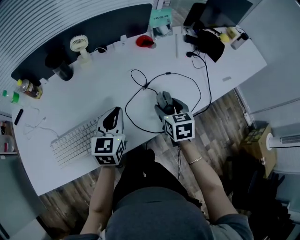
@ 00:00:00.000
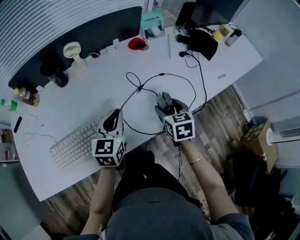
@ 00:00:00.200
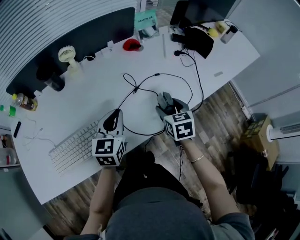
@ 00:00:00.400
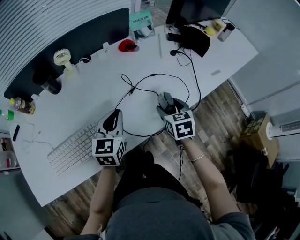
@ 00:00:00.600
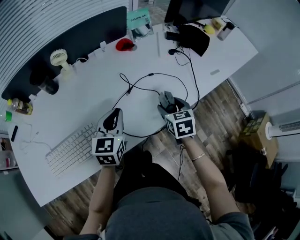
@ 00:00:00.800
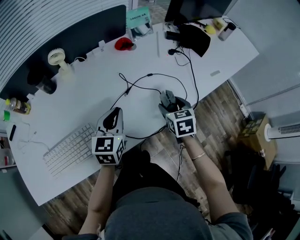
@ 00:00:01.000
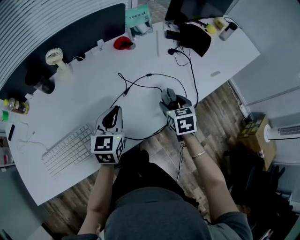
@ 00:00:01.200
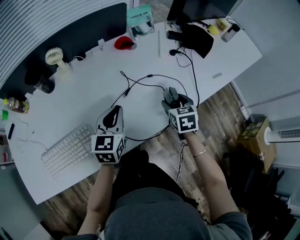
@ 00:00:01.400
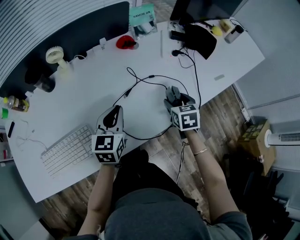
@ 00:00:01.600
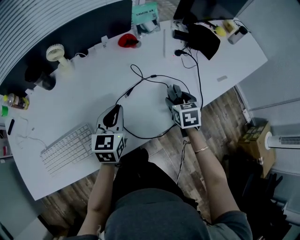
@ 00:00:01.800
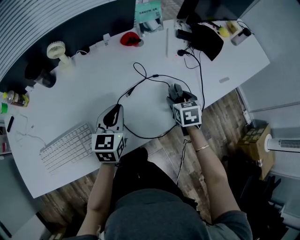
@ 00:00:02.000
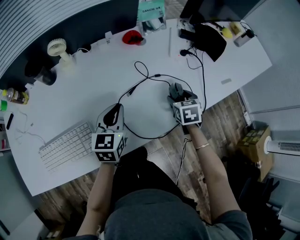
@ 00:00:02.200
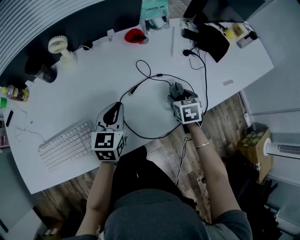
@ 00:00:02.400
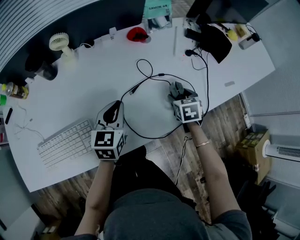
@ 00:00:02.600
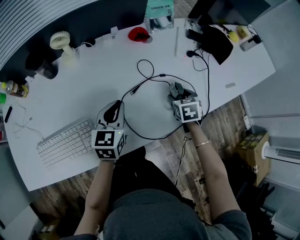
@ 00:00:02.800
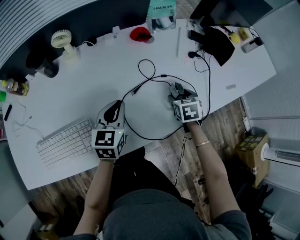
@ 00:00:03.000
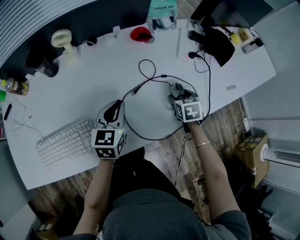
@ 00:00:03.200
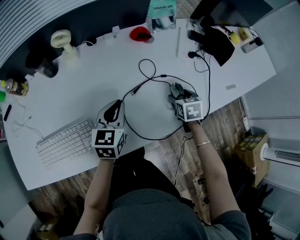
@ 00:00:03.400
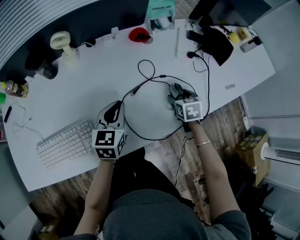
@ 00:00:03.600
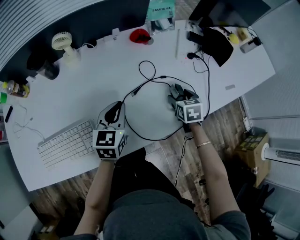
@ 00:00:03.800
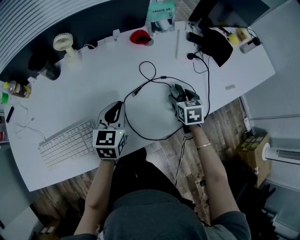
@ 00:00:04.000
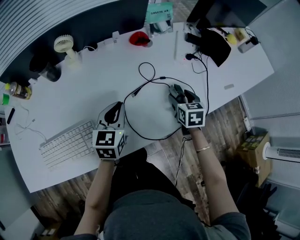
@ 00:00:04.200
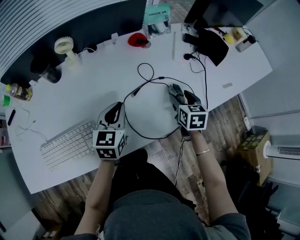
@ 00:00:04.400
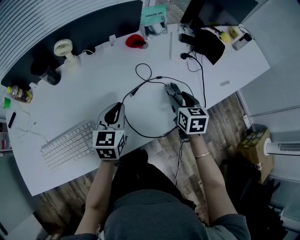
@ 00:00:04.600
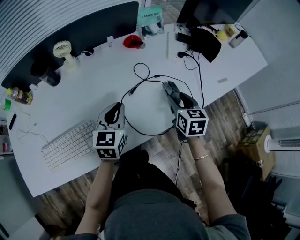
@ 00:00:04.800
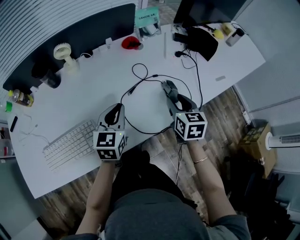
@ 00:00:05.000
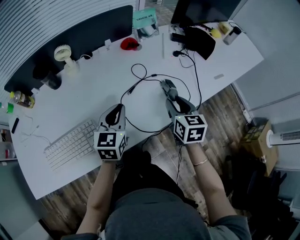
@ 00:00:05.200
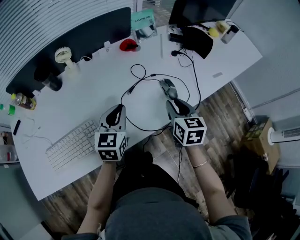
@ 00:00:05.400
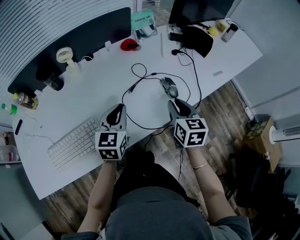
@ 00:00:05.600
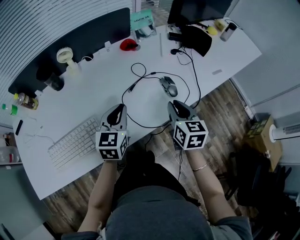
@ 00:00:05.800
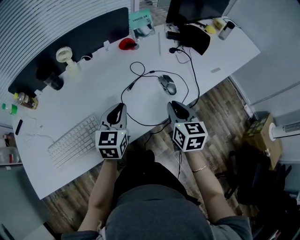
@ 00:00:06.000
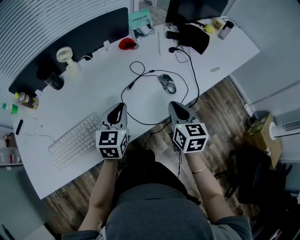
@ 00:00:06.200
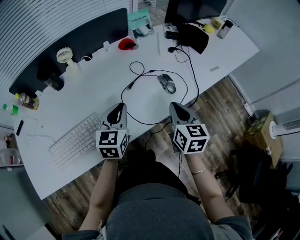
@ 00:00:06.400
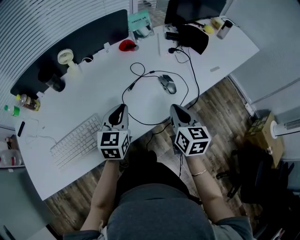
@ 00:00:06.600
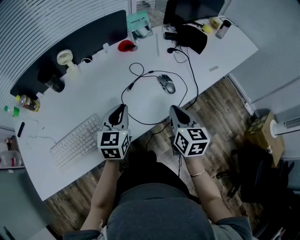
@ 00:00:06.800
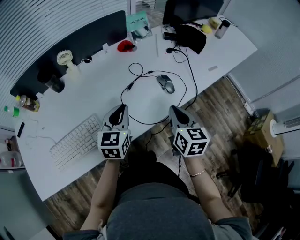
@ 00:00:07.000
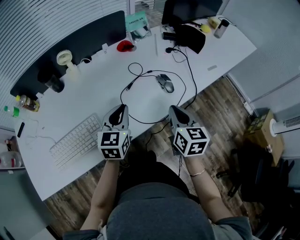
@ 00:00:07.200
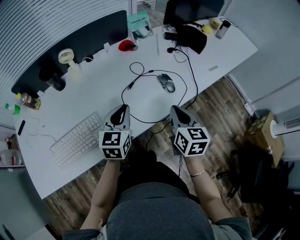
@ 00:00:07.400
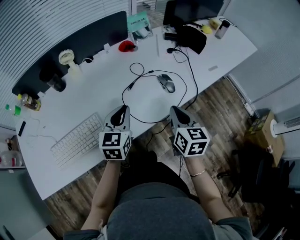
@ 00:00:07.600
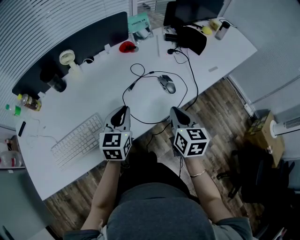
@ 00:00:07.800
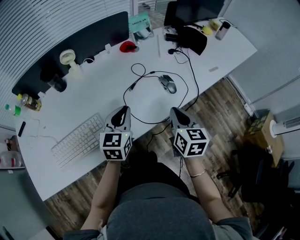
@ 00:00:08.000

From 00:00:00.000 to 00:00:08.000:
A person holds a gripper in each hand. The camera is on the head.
From 00:00:00.000 to 00:00:01.600: Both grippers travel together to the right and forward, about 15 cm.
From 00:00:01.600 to 00:00:03.200: The right gripper is displaced downward and forward by approximately 5 cm.
From 00:00:03.200 to 00:00:04.800: The right gripper moves upward and backward, roughly 10 cm, and turns by some 20 degrees.
From 00:00:04.800 to 00:00:06.400: The right gripper is displaced backward and upward by about 15 cm, and closes. Meanwhile the left gripper moves backward, some 5 cm.
From 00:00:06.400 to 00:00:08.000: The grippers move only a little.

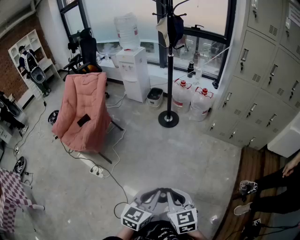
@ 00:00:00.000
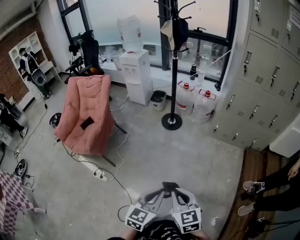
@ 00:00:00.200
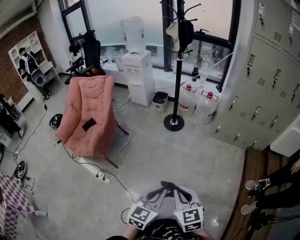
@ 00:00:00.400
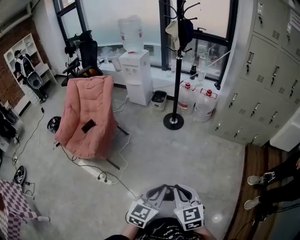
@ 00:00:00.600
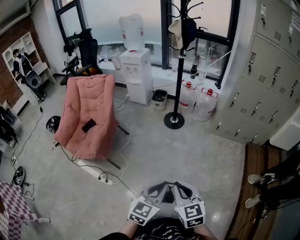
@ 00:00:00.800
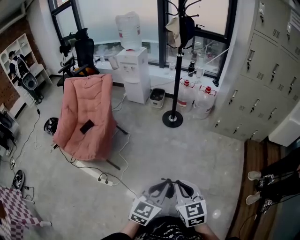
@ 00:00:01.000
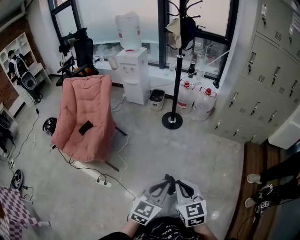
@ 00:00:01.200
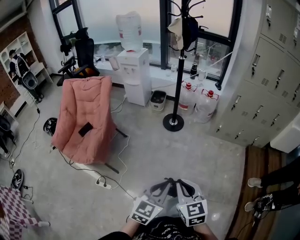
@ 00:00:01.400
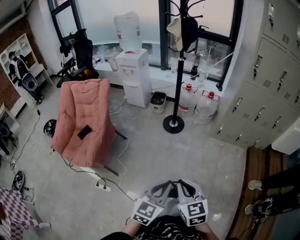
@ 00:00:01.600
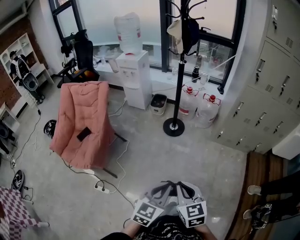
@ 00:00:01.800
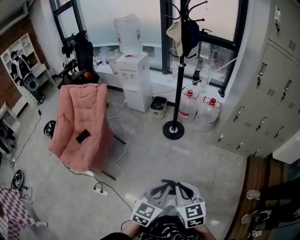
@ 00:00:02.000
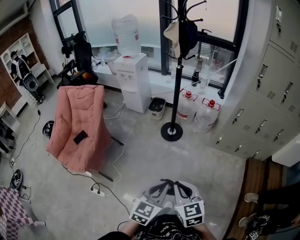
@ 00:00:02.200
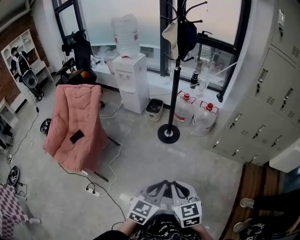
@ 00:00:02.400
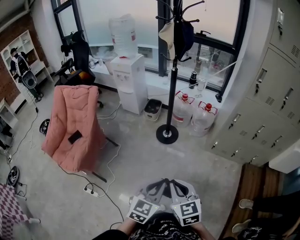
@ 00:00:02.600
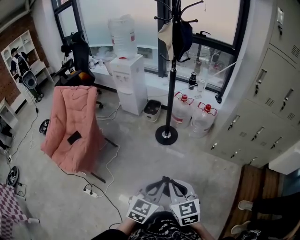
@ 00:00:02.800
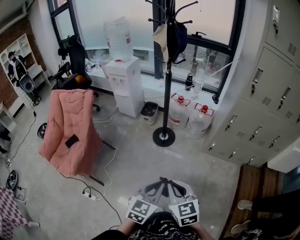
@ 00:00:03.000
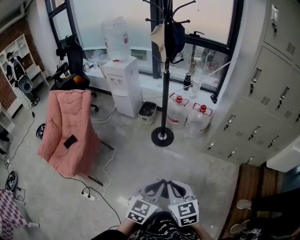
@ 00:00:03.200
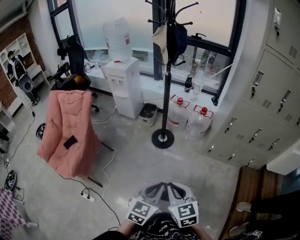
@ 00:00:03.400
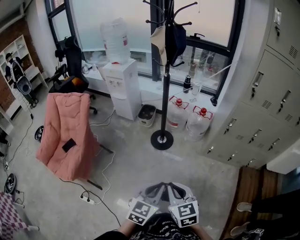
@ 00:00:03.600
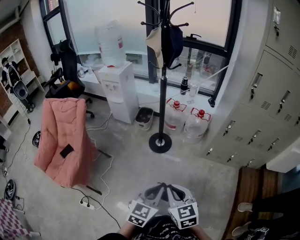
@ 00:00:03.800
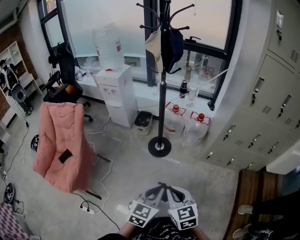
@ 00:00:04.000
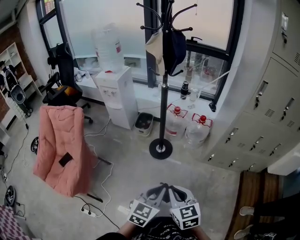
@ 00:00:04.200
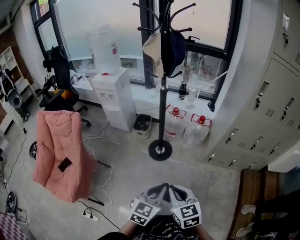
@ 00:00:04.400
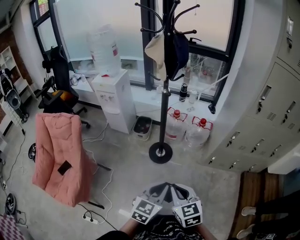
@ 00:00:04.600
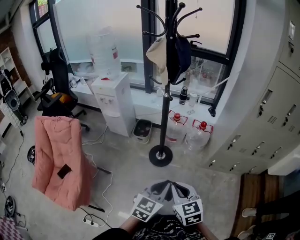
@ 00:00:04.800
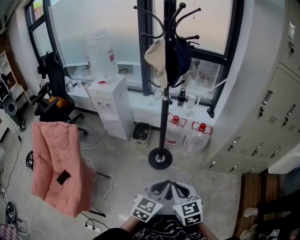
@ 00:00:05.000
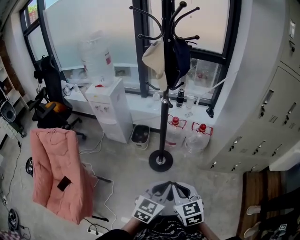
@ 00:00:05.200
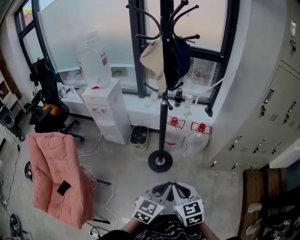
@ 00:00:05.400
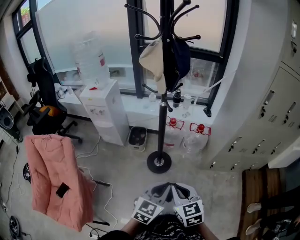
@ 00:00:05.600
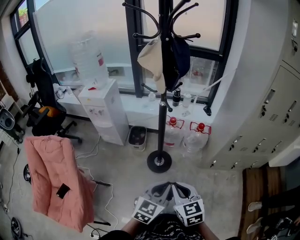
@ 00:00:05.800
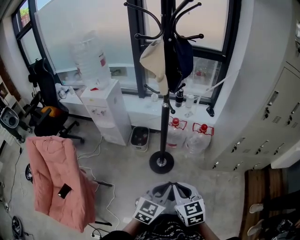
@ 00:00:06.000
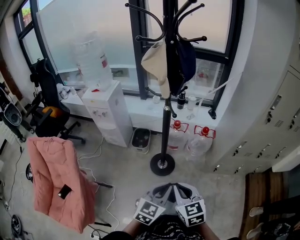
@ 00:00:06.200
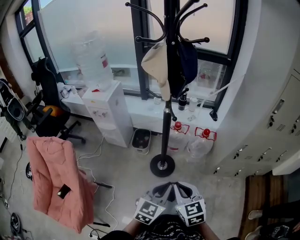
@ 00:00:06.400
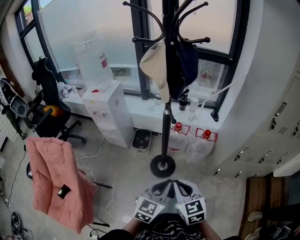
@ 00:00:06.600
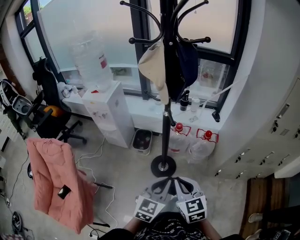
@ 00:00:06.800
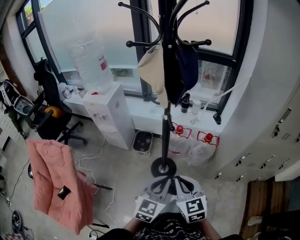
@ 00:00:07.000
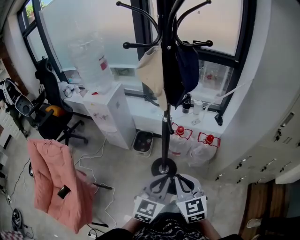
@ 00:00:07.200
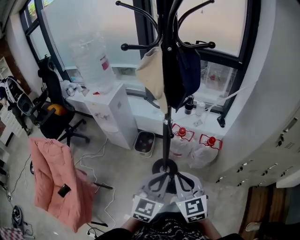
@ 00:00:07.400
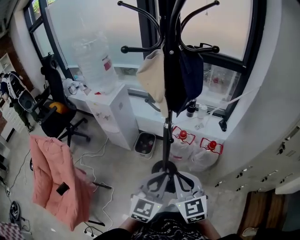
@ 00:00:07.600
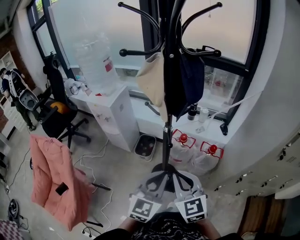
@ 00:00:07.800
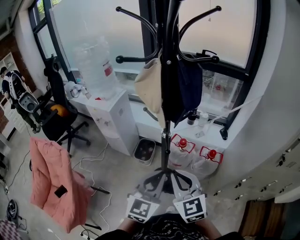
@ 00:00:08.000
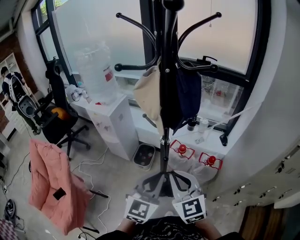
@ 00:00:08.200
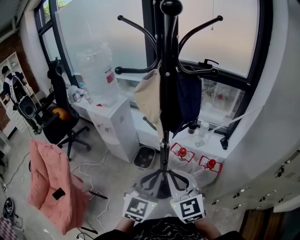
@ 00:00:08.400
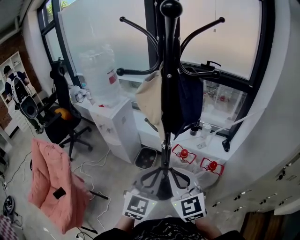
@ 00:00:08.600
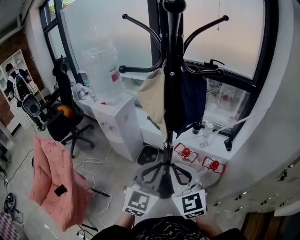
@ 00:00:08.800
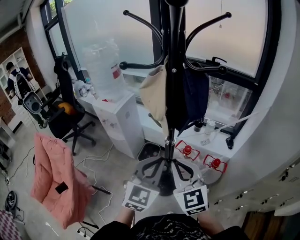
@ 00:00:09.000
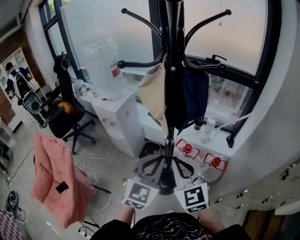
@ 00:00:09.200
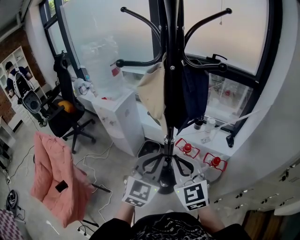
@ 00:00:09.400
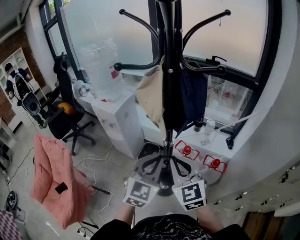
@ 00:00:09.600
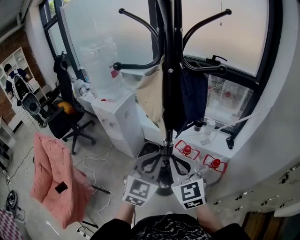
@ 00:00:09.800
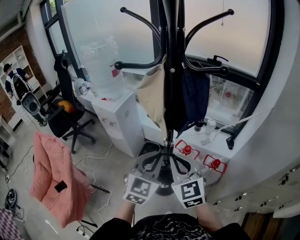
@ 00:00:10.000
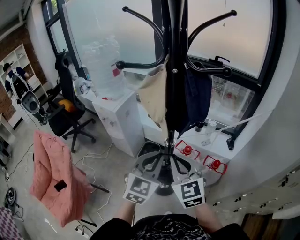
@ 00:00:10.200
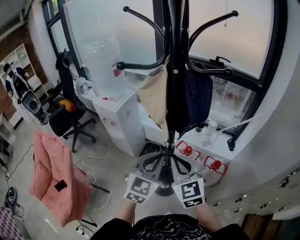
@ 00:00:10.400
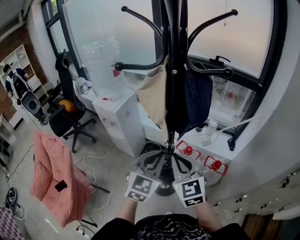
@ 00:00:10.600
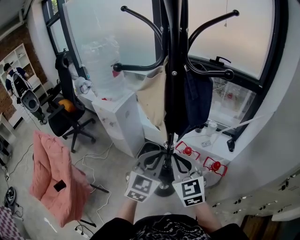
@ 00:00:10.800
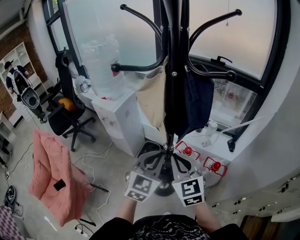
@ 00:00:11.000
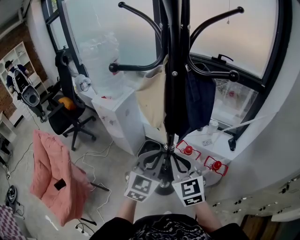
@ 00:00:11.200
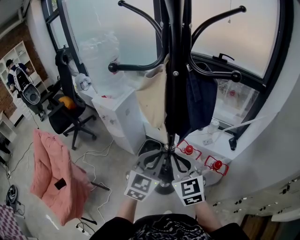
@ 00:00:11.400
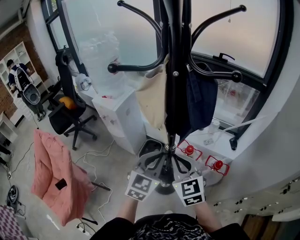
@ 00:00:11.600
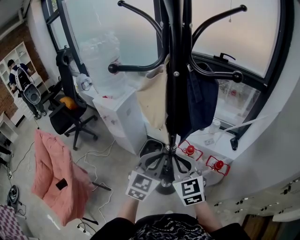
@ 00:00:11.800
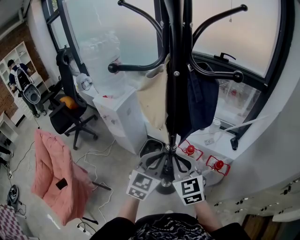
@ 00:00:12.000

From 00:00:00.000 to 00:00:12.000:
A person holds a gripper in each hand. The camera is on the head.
From 00:00:00.000 to 00:00:01.600: The grippers both shift forward and to the left by some 15 cm.
From 00:00:01.600 to 00:00:03.000: Both grippers travel together forward and to the right, about 20 cm.
From 00:00:03.000 to 00:00:04.400: Both grippers travel together forward, about 15 cm.
From 00:00:04.400 to 00:00:06.000: The grippers both shift forward and to the left by about 15 cm.
From 00:00:06.000 to 00:00:07.600: The two grippers go some 20 cm forward and upward.
From 00:00:07.600 to 00:00:09.000: The two grippers go about 10 cm forward and upward.
From 00:00:09.000 to 00:00:10.400: The left gripper changes place by about 5 cm.
From 00:00:10.400 to 00:00:12.000: The right gripper shifts by some 5 cm. Meanwhile the left gripper ends up about 5 cm from where it was.

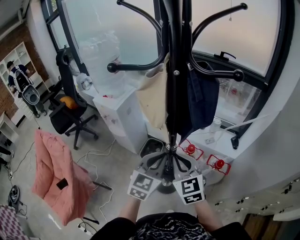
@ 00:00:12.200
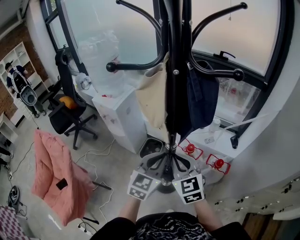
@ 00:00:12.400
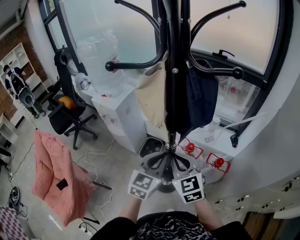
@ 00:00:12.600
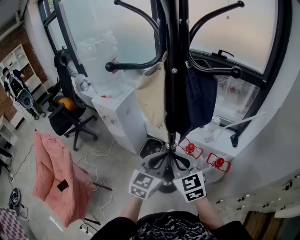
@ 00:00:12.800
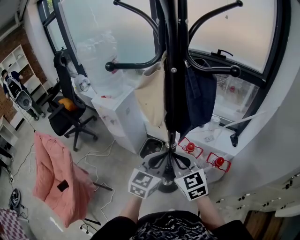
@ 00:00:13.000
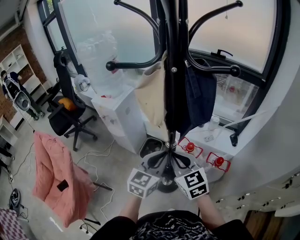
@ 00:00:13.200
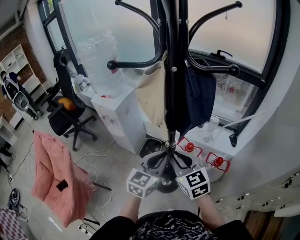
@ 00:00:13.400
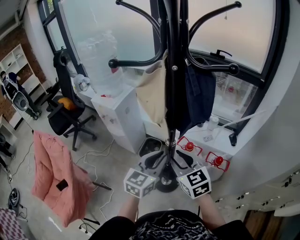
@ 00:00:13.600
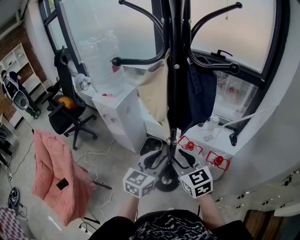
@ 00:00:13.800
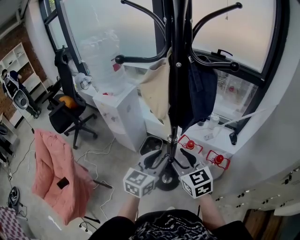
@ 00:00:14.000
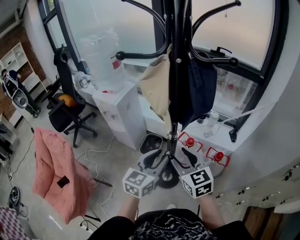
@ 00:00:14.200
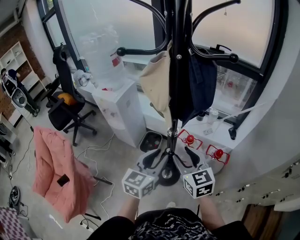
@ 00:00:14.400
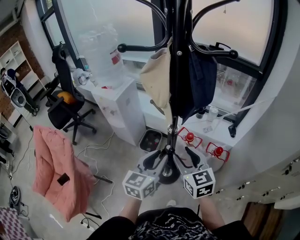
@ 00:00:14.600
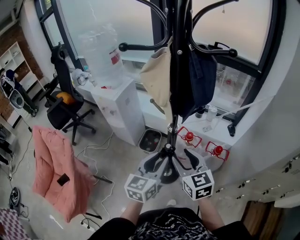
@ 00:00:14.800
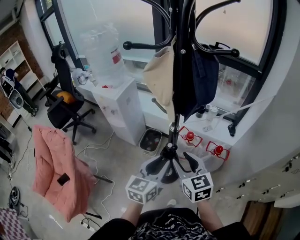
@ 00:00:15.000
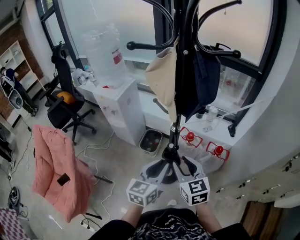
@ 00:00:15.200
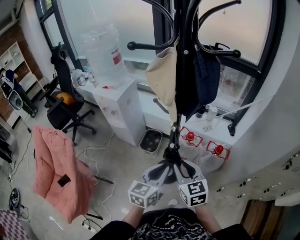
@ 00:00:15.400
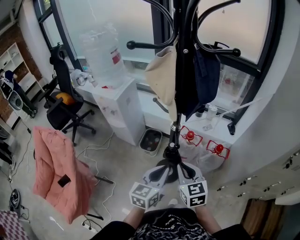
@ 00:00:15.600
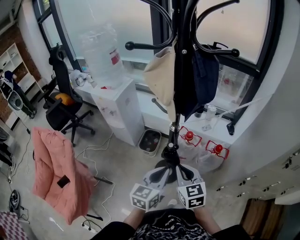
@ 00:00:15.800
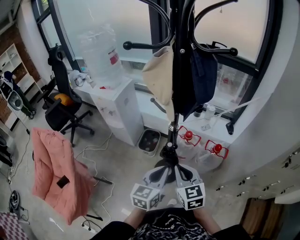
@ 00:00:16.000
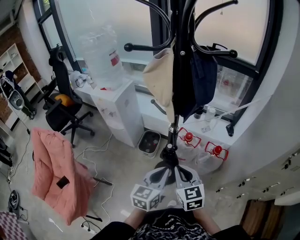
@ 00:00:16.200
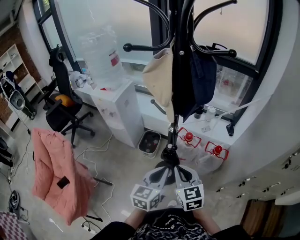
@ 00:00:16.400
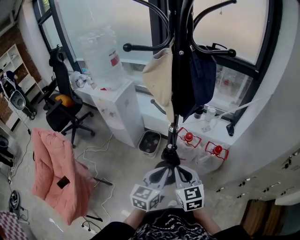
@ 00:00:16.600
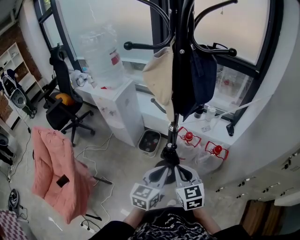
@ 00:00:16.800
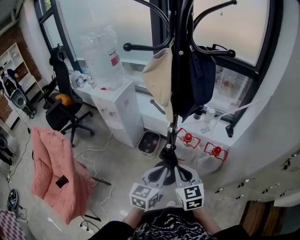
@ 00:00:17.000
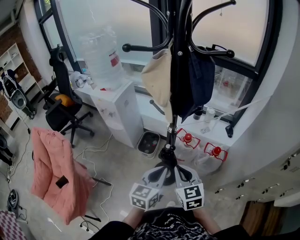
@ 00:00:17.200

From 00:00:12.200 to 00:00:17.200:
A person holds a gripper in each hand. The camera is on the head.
From 00:00:12.200 to 00:00:13.800: The right gripper opens its fingers. The left gripper opens.
From 00:00:13.800 to 00:00:15.600: The two grippers go approximately 10 cm backward and downward. The left gripper closes up. Meanwhile the right gripper closes.
From 00:00:15.600 to 00:00:17.200: There are only small adjustments of the grippers.
